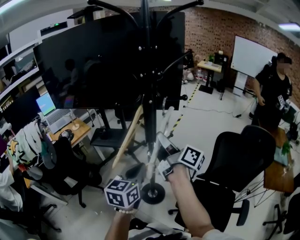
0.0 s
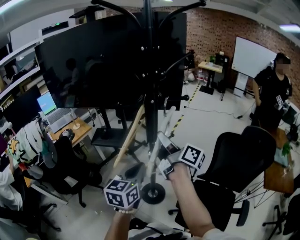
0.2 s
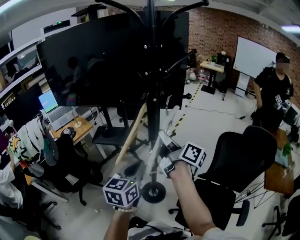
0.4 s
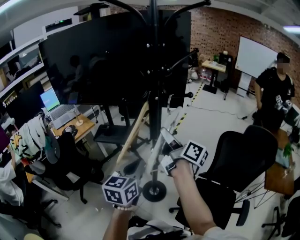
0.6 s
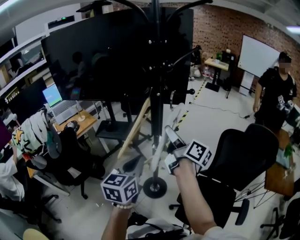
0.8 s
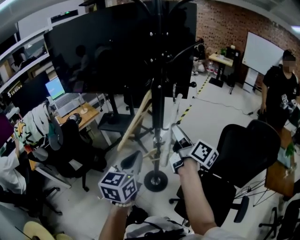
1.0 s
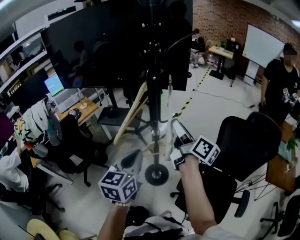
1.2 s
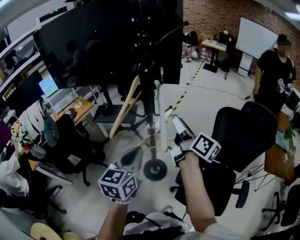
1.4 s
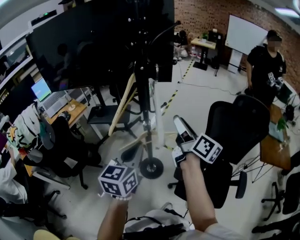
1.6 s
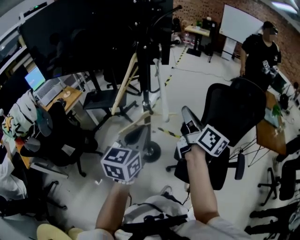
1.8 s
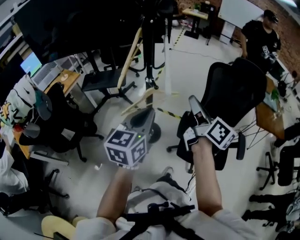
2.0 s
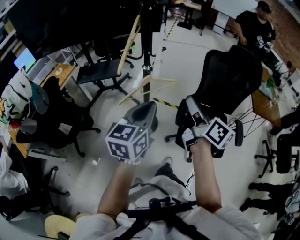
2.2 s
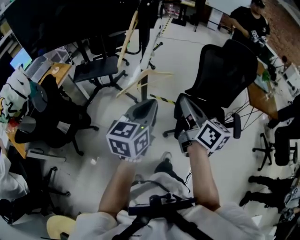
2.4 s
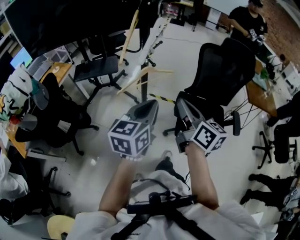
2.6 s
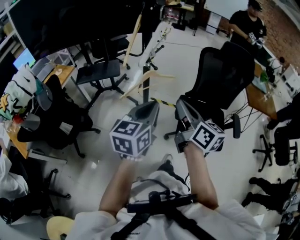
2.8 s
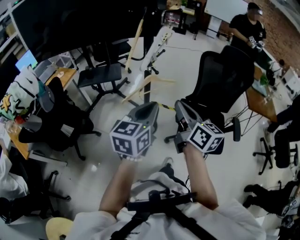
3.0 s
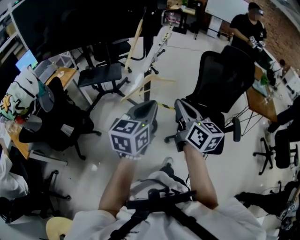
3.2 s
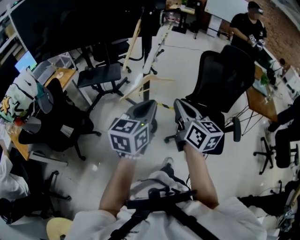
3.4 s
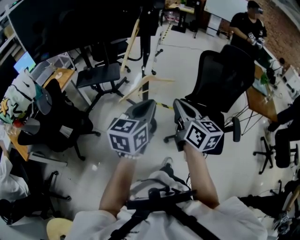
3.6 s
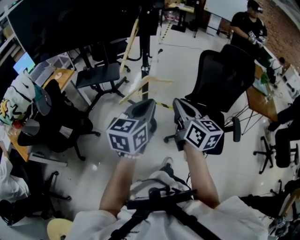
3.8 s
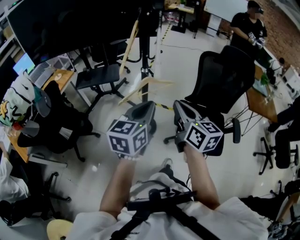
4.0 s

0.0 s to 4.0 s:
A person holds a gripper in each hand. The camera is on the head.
0.0 to 1.4 s: The right gripper travels to the right and backward by about 10 cm, and opens up. Meanwhile the left gripper travels backward by about 5 cm.
1.4 to 2.6 s: The left gripper heads backward, covering roughly 15 cm, and turns by approximately 20 degrees, while the right gripper shifts about 25 cm backward, changes its angle by approximately 30 degrees, and closes its fingers.
2.6 to 4.0 s: There are only small adjustments of the grippers.

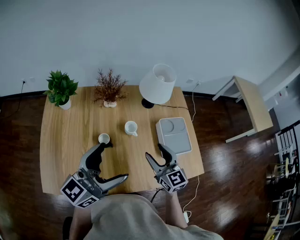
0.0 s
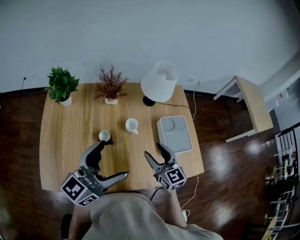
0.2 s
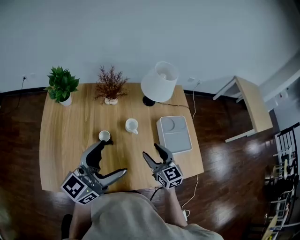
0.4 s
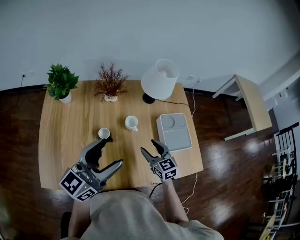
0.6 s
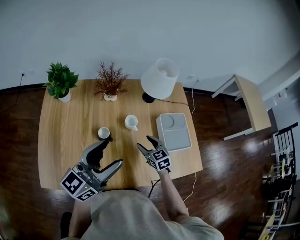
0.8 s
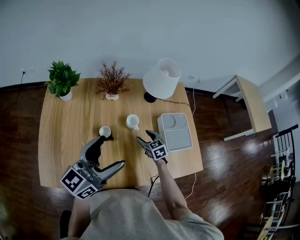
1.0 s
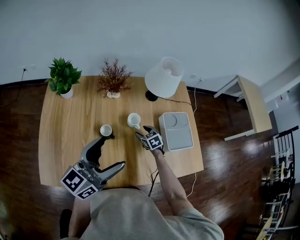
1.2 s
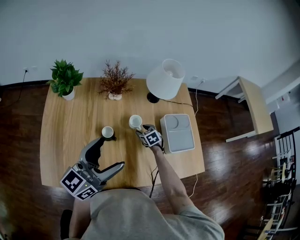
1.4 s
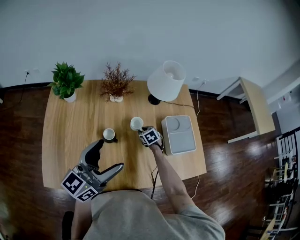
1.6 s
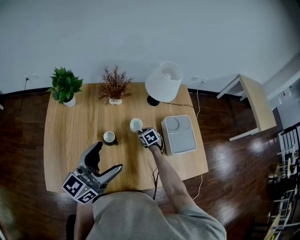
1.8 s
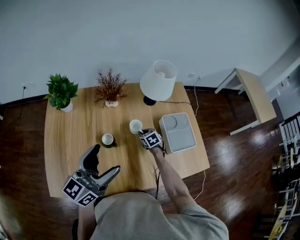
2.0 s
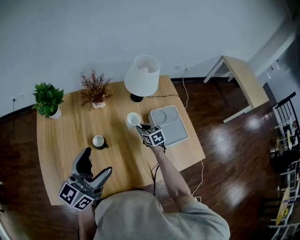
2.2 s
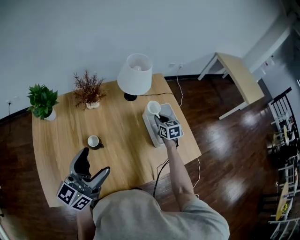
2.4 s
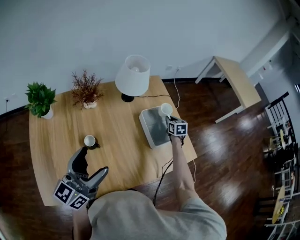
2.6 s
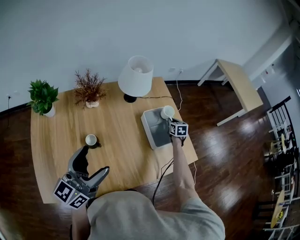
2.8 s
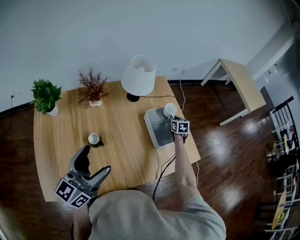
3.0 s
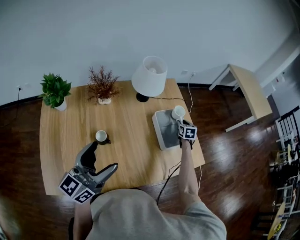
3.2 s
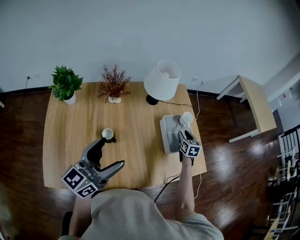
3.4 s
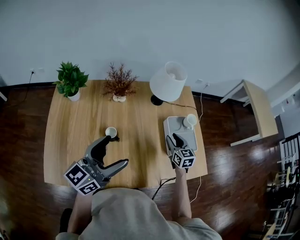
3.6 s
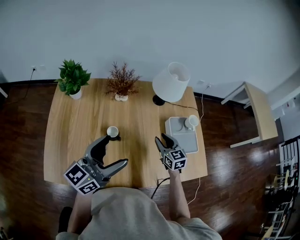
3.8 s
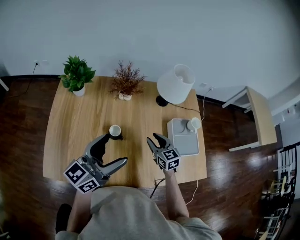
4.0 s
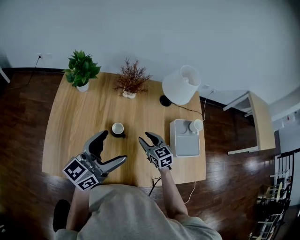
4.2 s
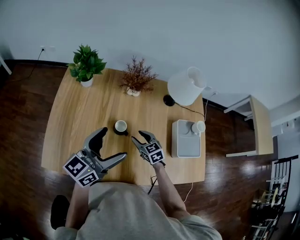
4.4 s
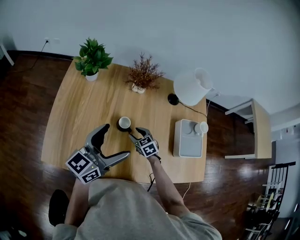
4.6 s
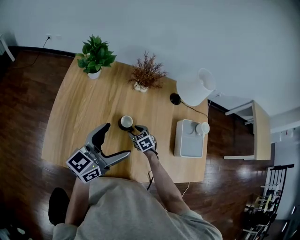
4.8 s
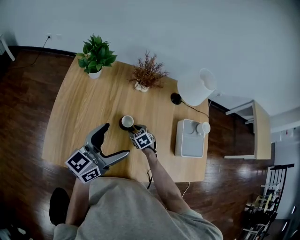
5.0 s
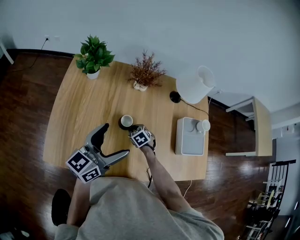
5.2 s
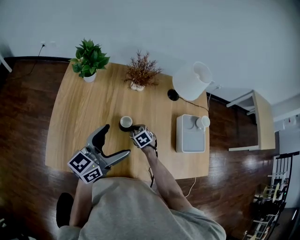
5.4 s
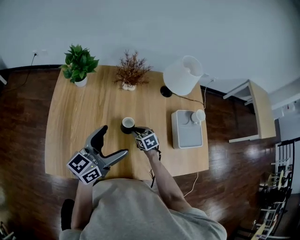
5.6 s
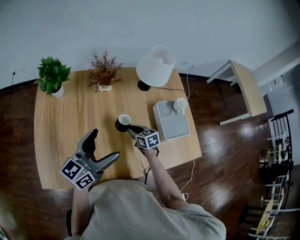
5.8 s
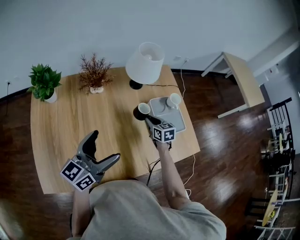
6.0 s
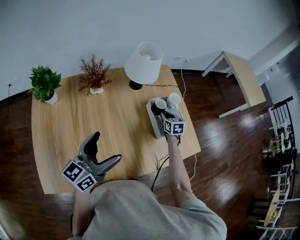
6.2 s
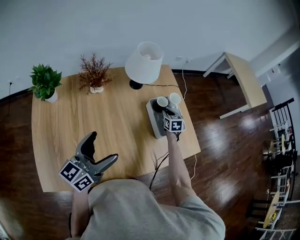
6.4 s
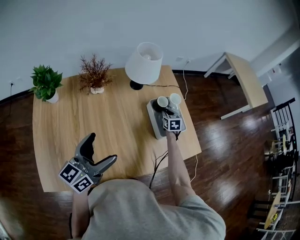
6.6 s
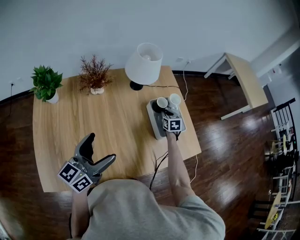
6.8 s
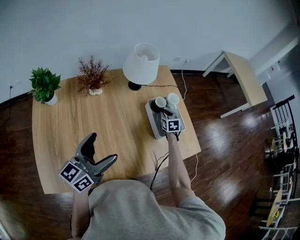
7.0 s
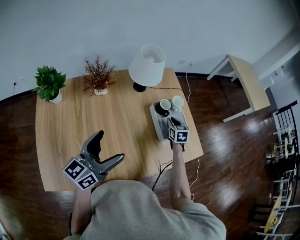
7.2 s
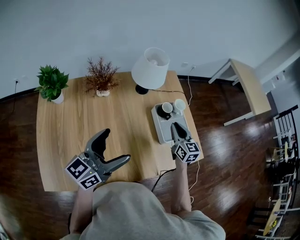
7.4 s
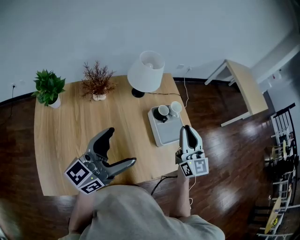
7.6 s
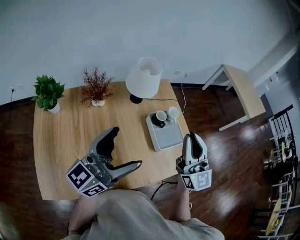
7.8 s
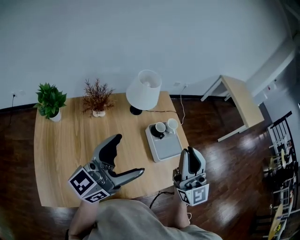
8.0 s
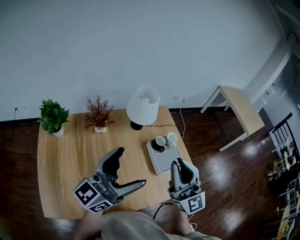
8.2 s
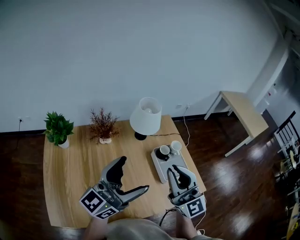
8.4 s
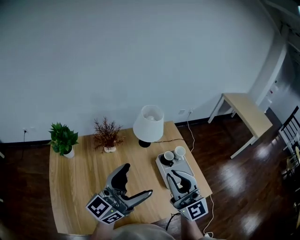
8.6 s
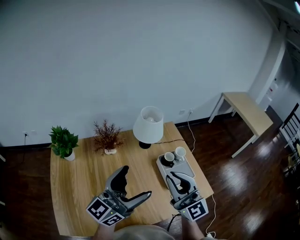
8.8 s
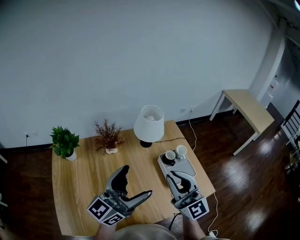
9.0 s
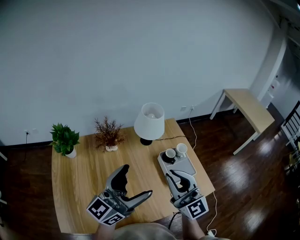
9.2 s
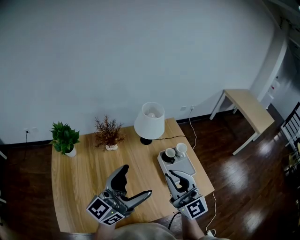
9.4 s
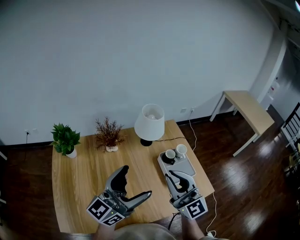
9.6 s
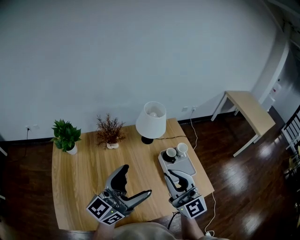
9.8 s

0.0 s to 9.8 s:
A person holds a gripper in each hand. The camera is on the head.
0.0 to 1.4 s: The right gripper is displaced downward and forward by about 30 cm, and tilts its fingers some 40 degrees downward. Meanwhile the left gripper ends up roughly 5 cm from where it was.
1.4 to 2.8 s: The right gripper travels to the right by roughly 30 cm, swivels some 40 degrees, and closes its fingers.
2.8 to 4.2 s: The left gripper changes place by approximately 5 cm. The right gripper shifts by about 40 cm, rotates some 50 degrees, and opens its fingers.
4.2 to 5.6 s: The right gripper shifts roughly 10 cm downward, turns by approximately 20 degrees, and closes its fingers.
5.6 to 7.0 s: The right gripper ends up some 35 cm from where it was, and turns by about 40 degrees. Meanwhile the left gripper changes place by some 10 cm.
7.0 to 8.4 s: The left gripper goes some 15 cm upward, and changes its angle by approximately 20 degrees. Meanwhile the right gripper moves upward and backward, roughly 50 cm, and points its fingers roughly 60 degrees further upward.
8.4 to 9.8 s: The grippers stay close to where they were, moving slightly.

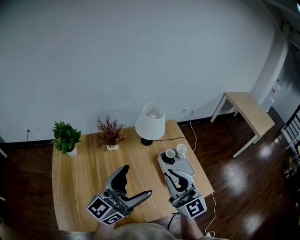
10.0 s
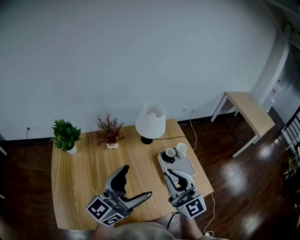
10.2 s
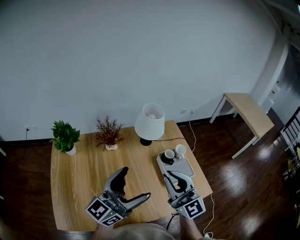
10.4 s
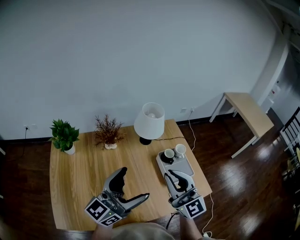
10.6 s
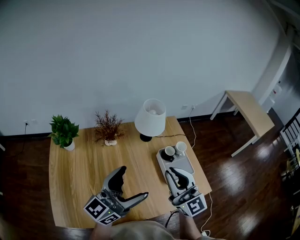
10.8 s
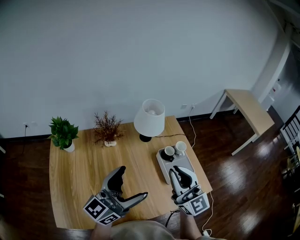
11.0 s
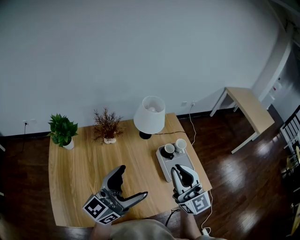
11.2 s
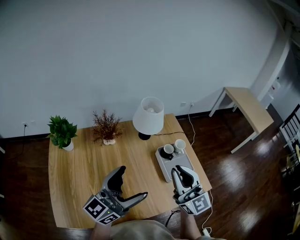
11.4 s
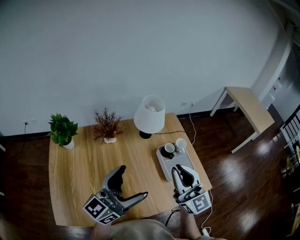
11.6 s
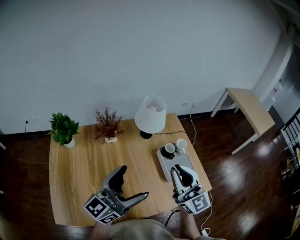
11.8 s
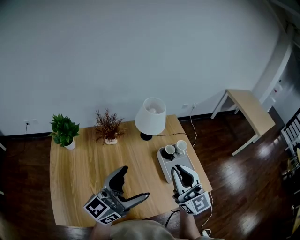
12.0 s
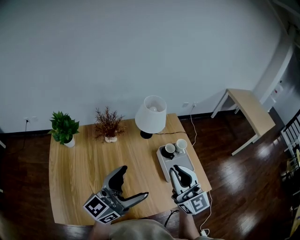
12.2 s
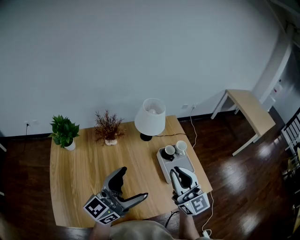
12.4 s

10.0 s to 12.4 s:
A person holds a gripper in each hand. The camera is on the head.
10.0 to 11.2 s: The grippers move only a little.
11.2 to 12.4 s: Neither gripper changes place.

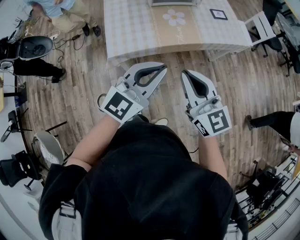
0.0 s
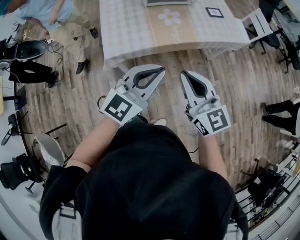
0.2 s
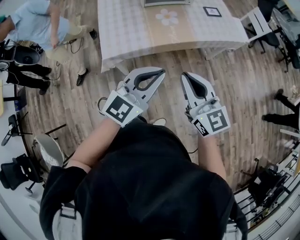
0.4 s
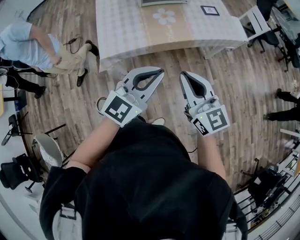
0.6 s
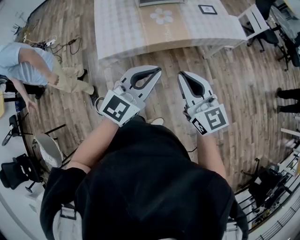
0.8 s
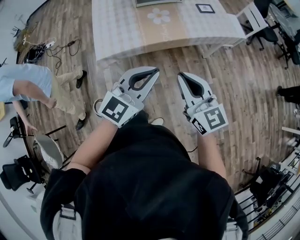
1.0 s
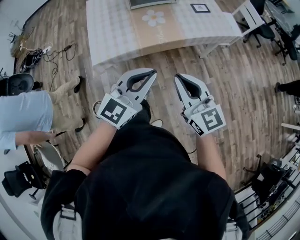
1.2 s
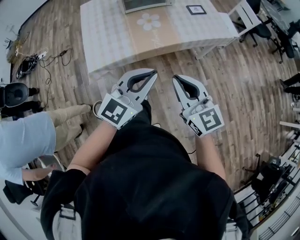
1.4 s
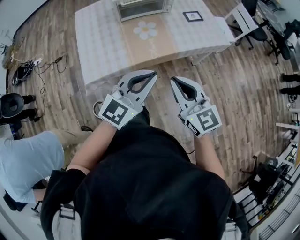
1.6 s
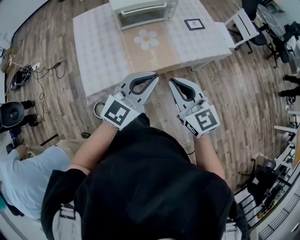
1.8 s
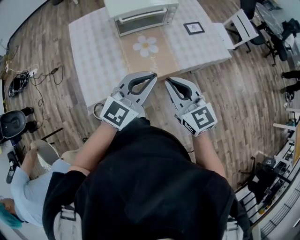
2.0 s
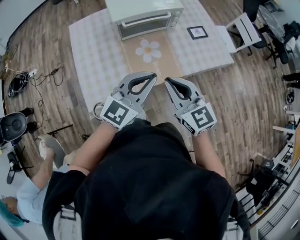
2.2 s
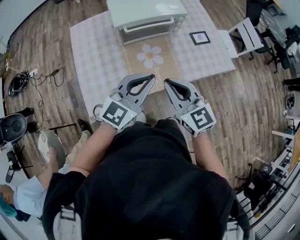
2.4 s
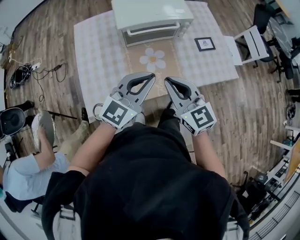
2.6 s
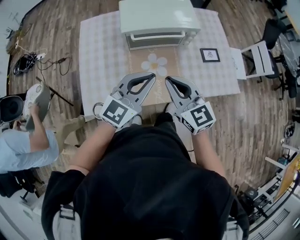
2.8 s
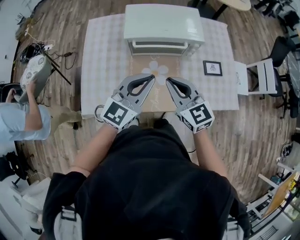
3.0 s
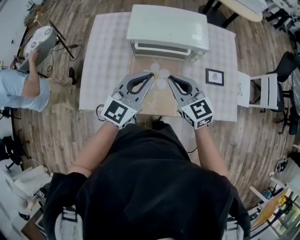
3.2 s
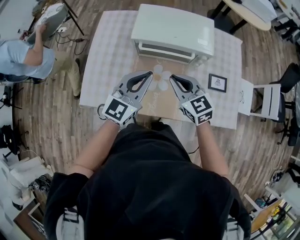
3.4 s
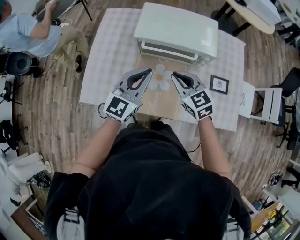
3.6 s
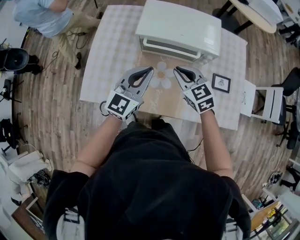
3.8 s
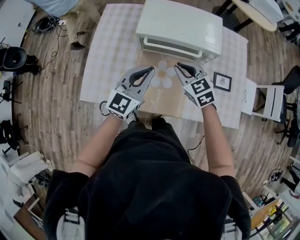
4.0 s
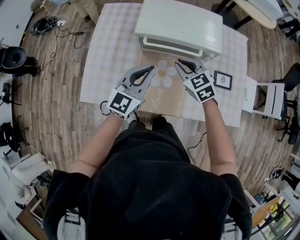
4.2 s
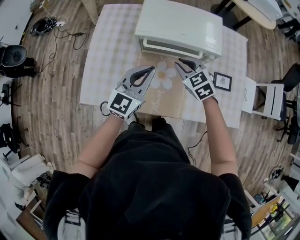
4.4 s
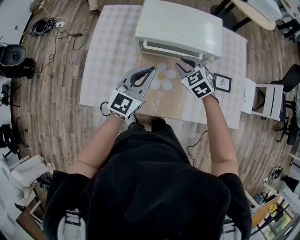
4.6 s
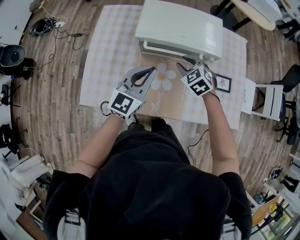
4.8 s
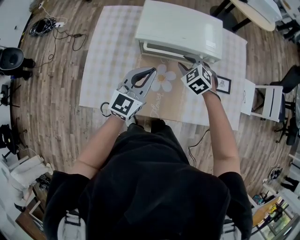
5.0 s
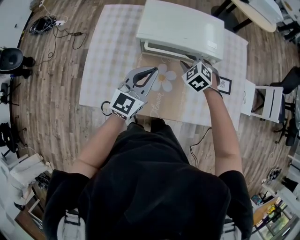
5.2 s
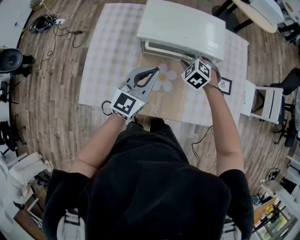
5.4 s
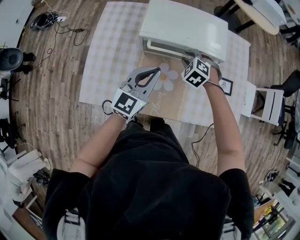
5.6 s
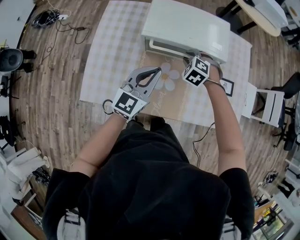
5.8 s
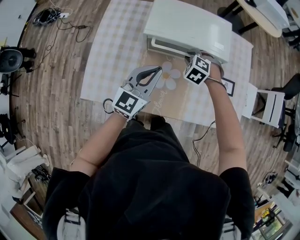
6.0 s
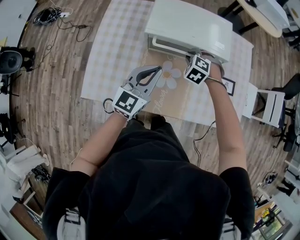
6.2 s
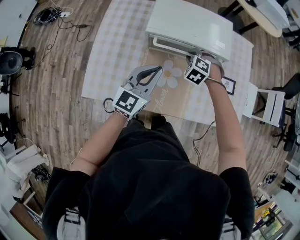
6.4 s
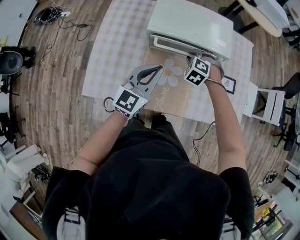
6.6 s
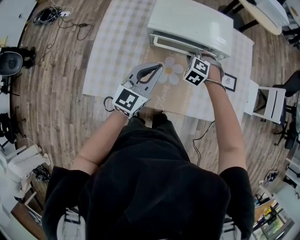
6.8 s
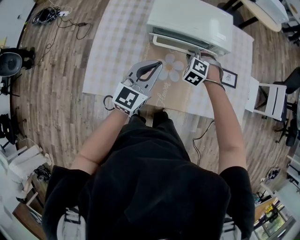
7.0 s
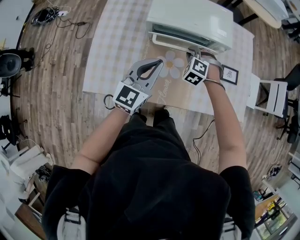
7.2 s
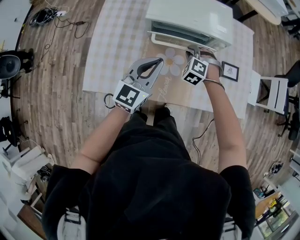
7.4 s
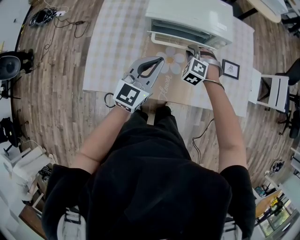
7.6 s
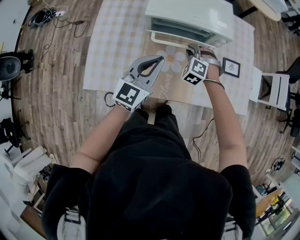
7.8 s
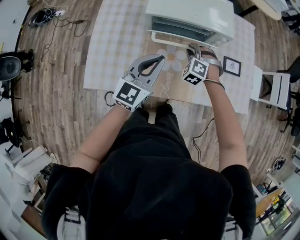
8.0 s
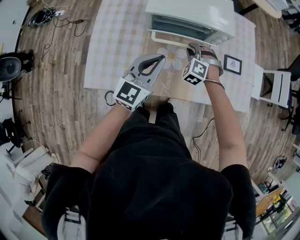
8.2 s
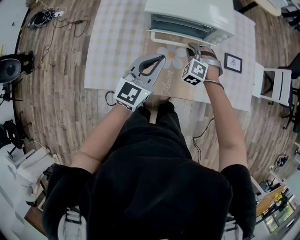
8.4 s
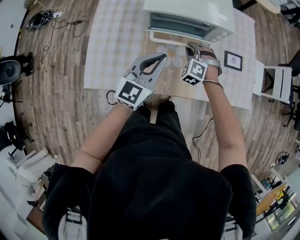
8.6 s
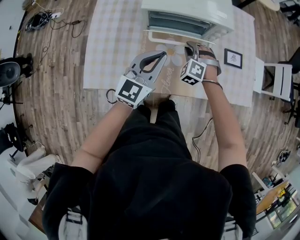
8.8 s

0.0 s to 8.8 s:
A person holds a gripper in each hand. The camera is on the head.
0.0 to 1.4 s: Both grippers move to the right, roughly 10 cm.
1.4 to 3.0 s: The two grippers travel together, forward, some 40 cm. The right gripper rotates roughly 20 degrees.
3.0 to 4.4 s: The right gripper heads forward and downward, covering about 20 cm, and rotates roughly 30 degrees. The left gripper travels forward and downward by approximately 10 cm.
4.4 to 5.8 s: The right gripper is displaced downward and forward by about 10 cm, and changes its angle by about 40 degrees.
5.8 to 7.4 s: The right gripper is displaced backward by roughly 5 cm.
7.4 to 8.8 s: The grippers stay close to where they were, moving slightly.
